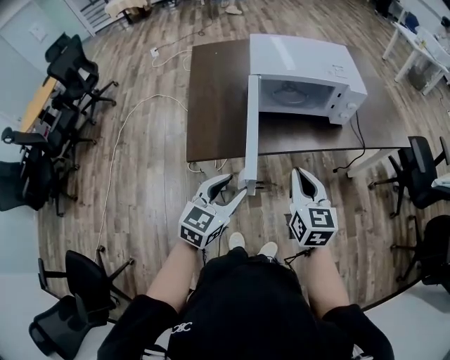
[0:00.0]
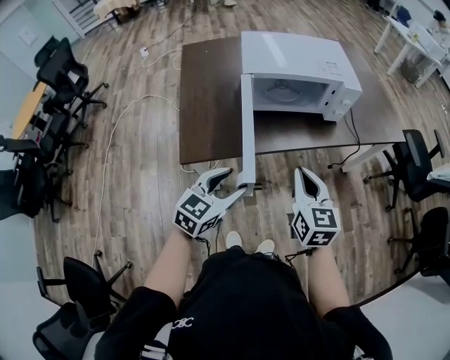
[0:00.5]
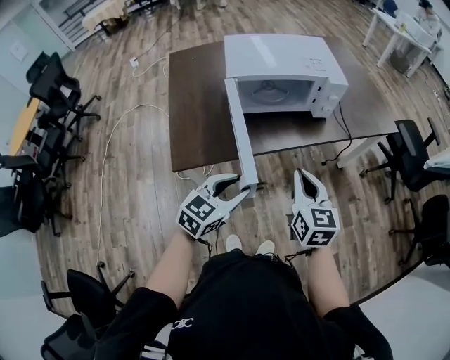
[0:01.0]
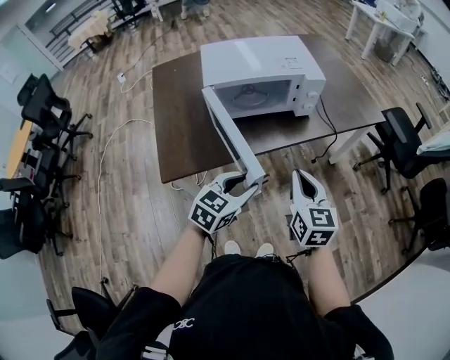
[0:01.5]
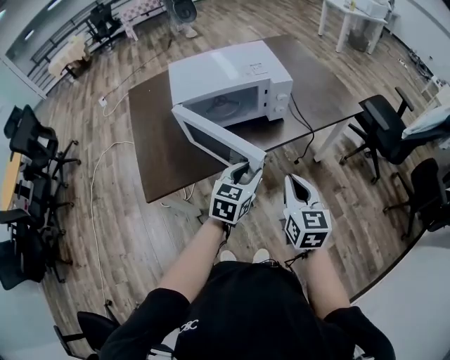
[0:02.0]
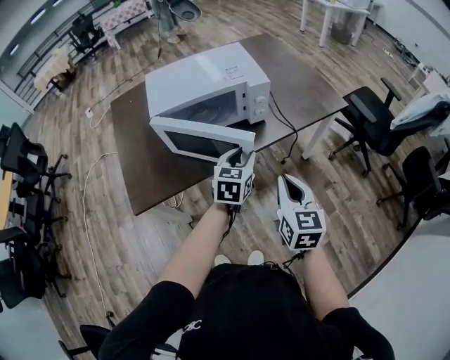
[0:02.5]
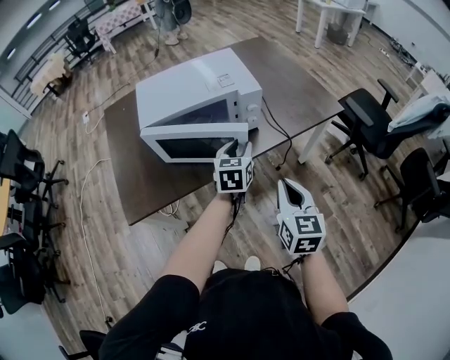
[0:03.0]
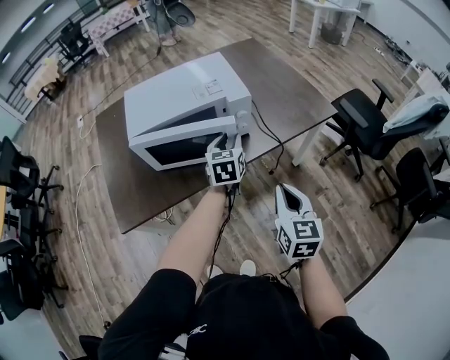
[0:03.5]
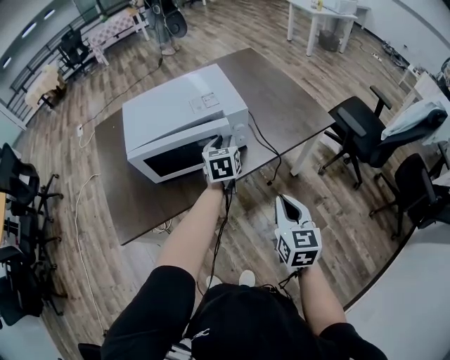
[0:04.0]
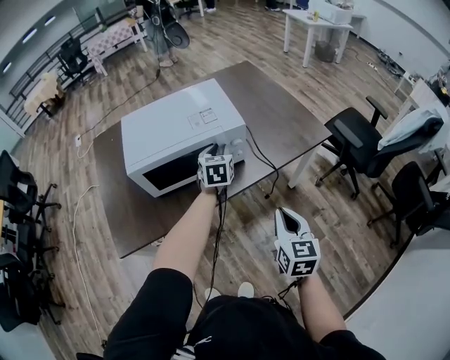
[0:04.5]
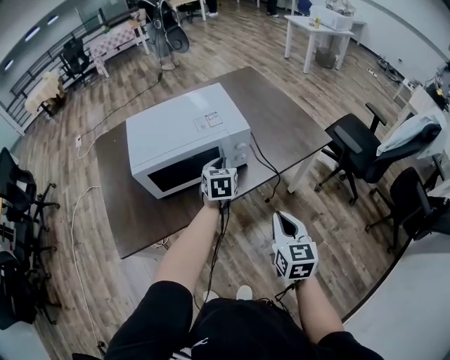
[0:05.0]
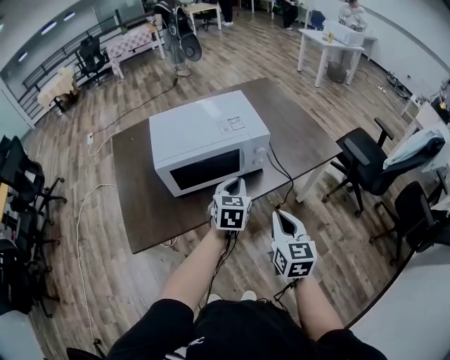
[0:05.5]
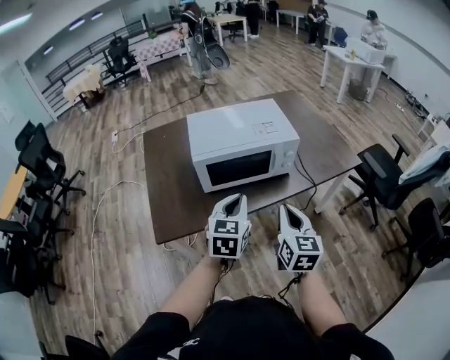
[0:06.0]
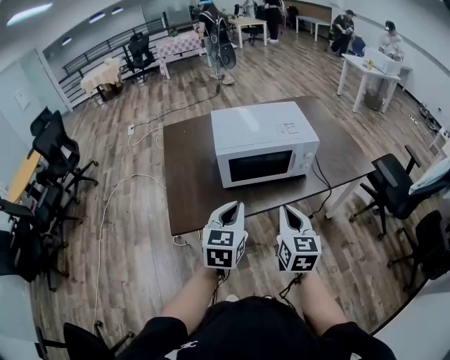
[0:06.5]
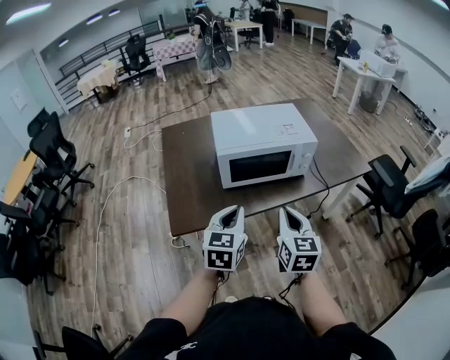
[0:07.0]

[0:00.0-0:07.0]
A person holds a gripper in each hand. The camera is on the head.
0:00.0 to 0:02.0: The left gripper travels to the right and forward by about 25 cm; the right gripper shifts some 15 cm to the right.
0:02.0 to 0:03.5: The left gripper is displaced forward by some 20 cm, while the right gripper is displaced to the right and forward by some 10 cm.
0:05.0 to 0:07.0: The right gripper shifts some 20 cm to the left. The left gripper heads backward and to the left, covering roughly 35 cm.

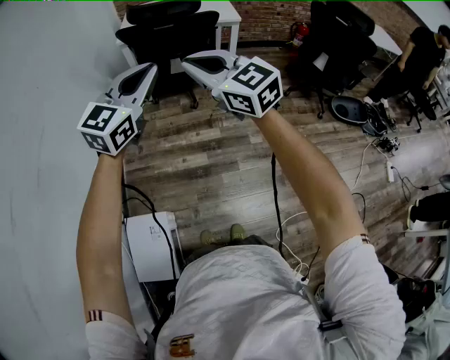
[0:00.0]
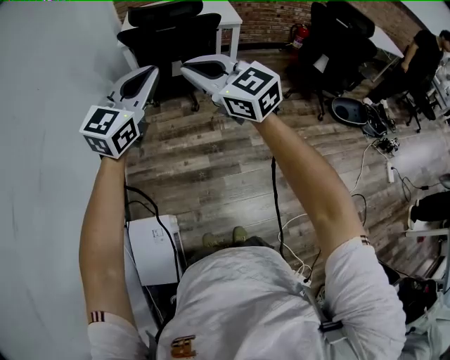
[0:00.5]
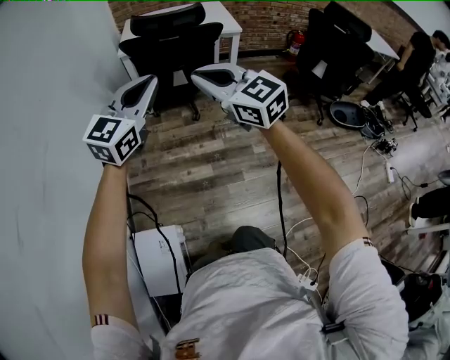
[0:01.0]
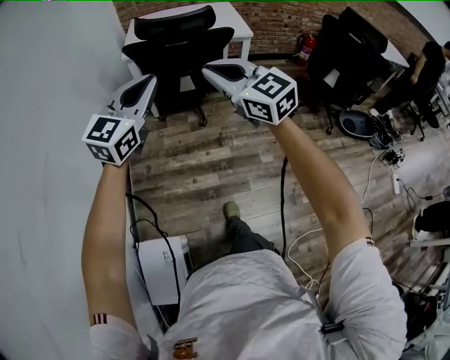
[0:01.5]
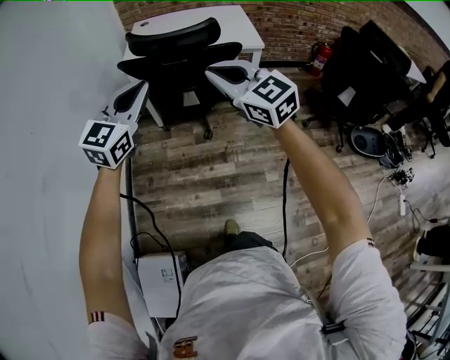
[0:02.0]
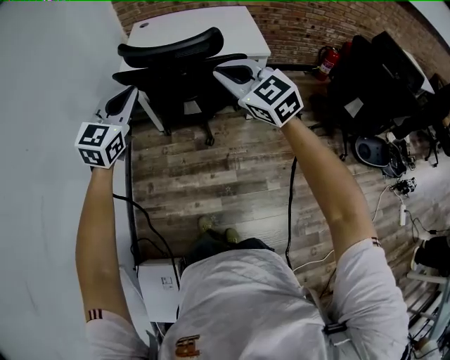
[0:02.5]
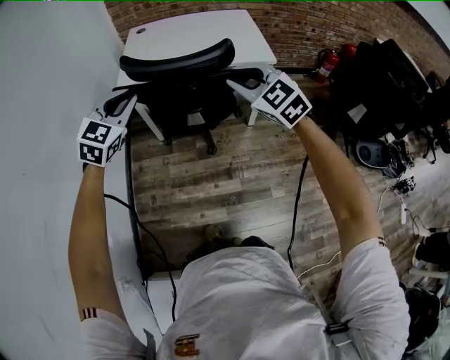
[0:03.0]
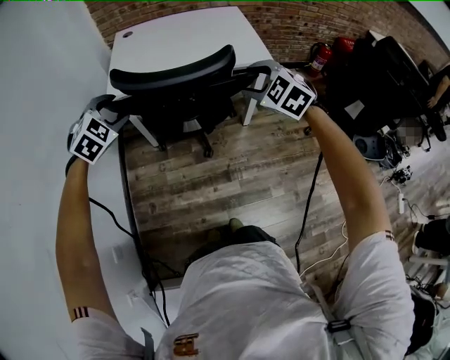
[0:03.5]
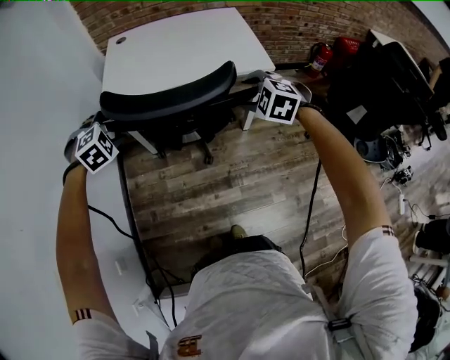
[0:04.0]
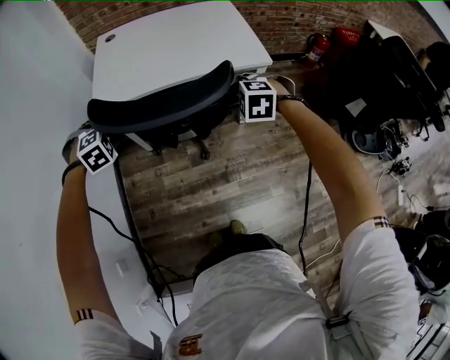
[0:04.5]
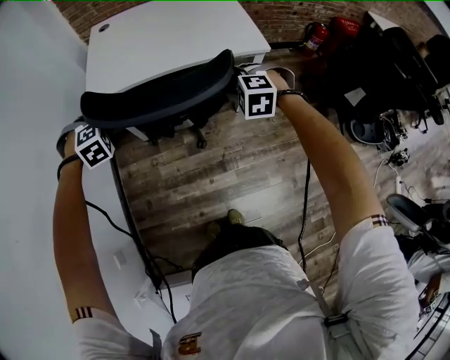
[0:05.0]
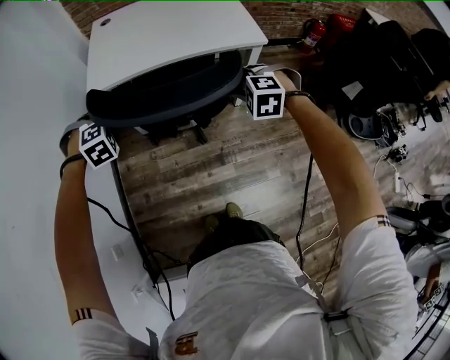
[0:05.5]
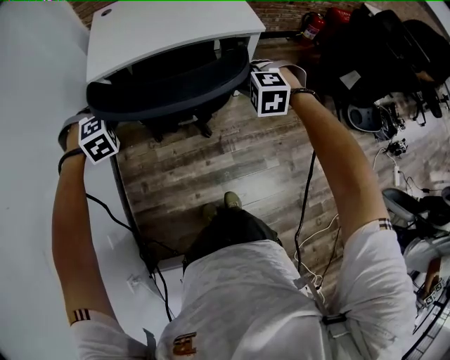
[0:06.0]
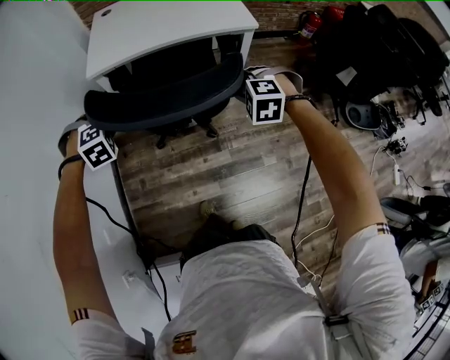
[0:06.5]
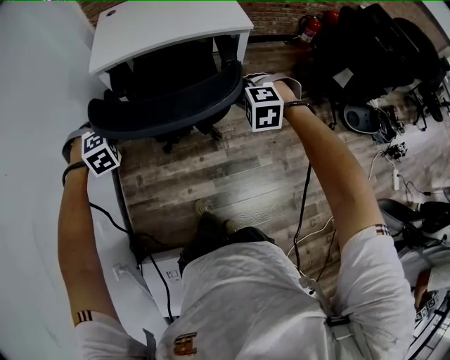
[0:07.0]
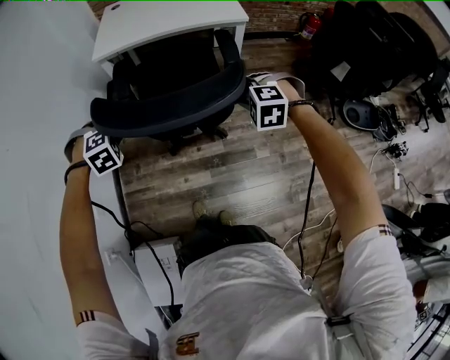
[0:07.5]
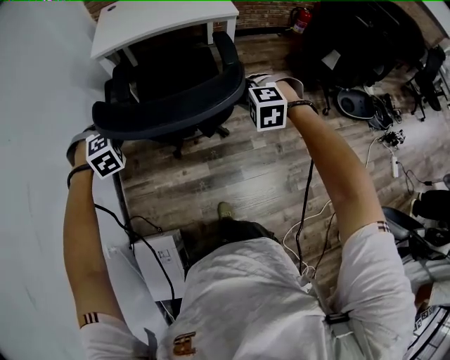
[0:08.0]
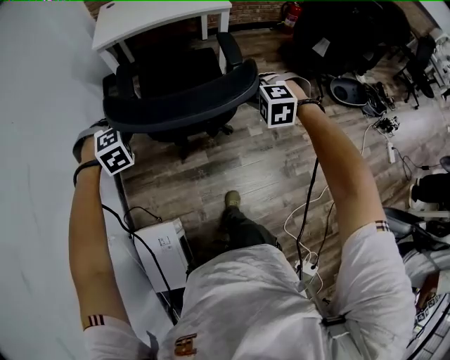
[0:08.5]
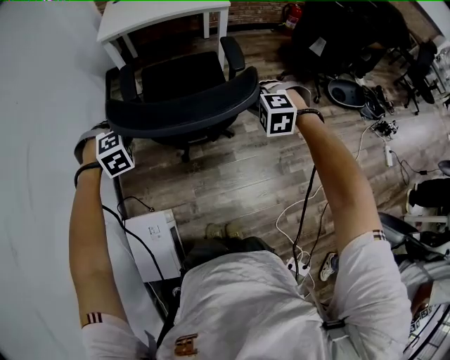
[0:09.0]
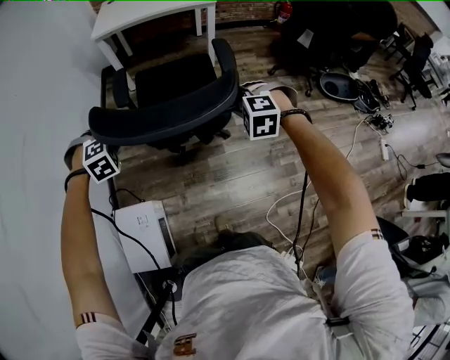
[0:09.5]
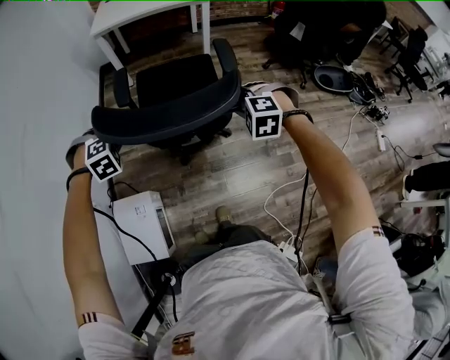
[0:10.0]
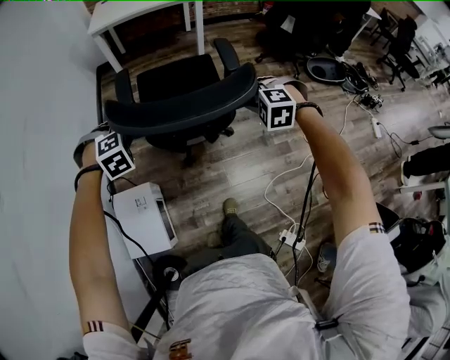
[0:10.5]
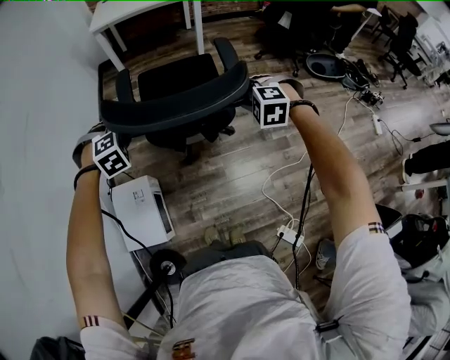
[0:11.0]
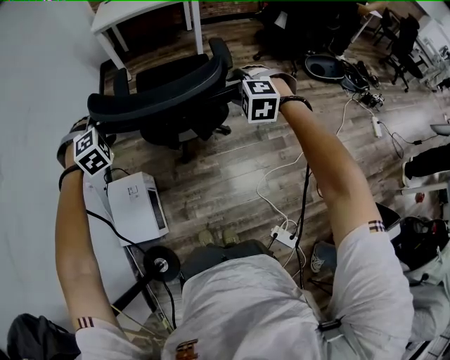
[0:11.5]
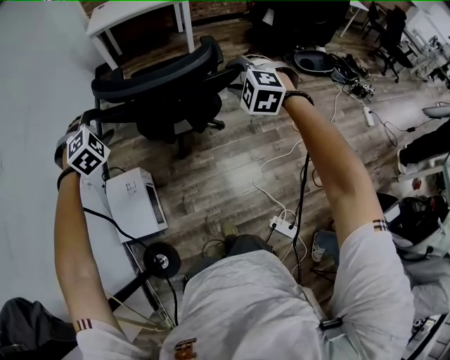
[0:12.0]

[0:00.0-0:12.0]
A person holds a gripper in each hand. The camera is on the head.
0:00.0 to 0:02.0: Both grippers move forward, some 30 cm.
0:02.0 to 0:04.0: The grippers both shift forward and downward by about 40 cm. The left gripper points its fingers about 50 degrees further downward, and opens up. The right gripper tilts its fingers approximately 50 degrees downward, and opens its fingers.
0:04.0 to 0:06.0: The right gripper travels backward and downward by some 10 cm, and closes its fingers; the left gripper is displaced backward by about 10 cm, and closes.
0:06.0 to 0:08.0: The two grippers go some 30 cm backward.
0:08.0 to 0:10.0: Both grippers move backward, about 35 cm.
0:10.0 to 0:12.0: The right gripper shifts approximately 20 cm backward and upward, and opens its fingers. The left gripper moves backward, roughly 20 cm, and opens.

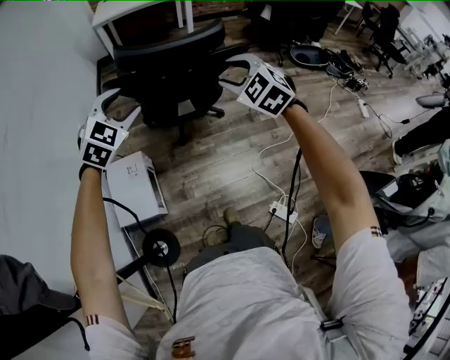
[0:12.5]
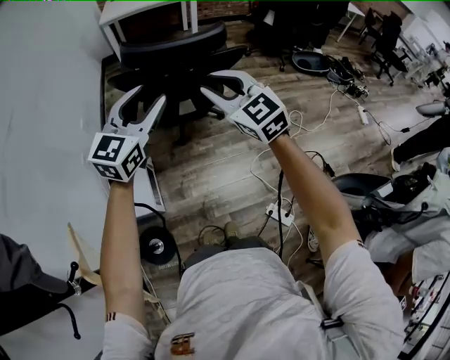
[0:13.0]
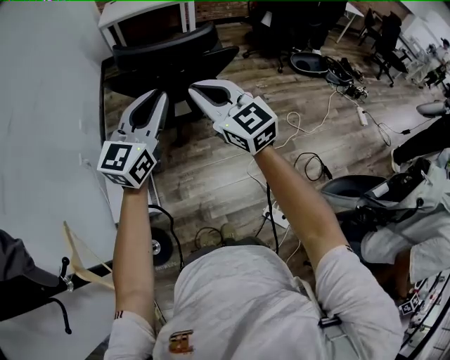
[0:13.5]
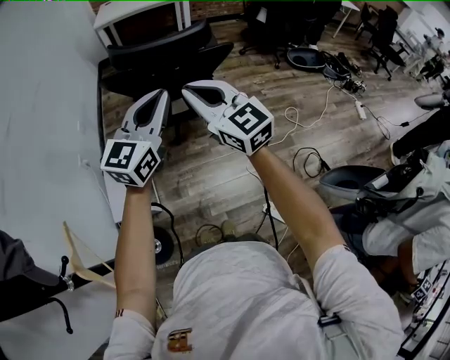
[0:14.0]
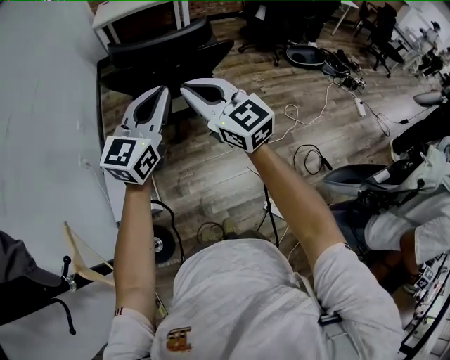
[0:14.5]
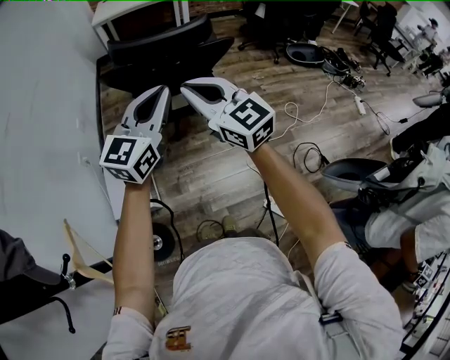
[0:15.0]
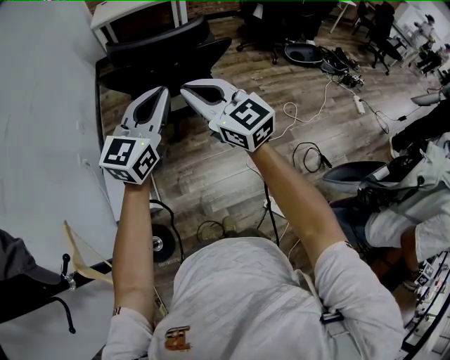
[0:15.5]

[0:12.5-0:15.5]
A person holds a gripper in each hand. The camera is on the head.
0:12.5 to 0:14.0: The left gripper heads to the right, backward and upward, covering about 20 cm, tips its fingers upward by roughly 40 degrees, and closes its fingers, while the right gripper goes about 15 cm backward, upward and to the left, tilts its fingers some 30 degrees upward, and closes its fingers.
0:14.0 to 0:15.5: The grippers make only small movements.

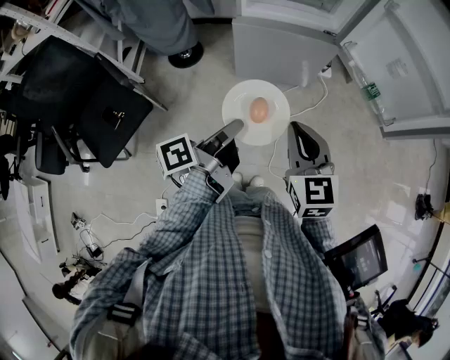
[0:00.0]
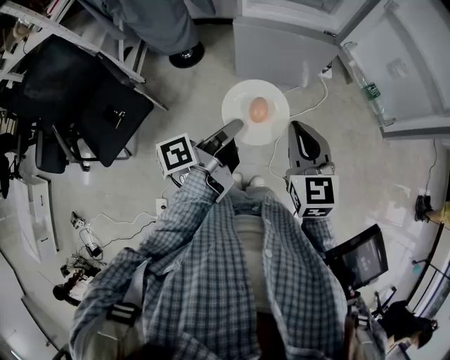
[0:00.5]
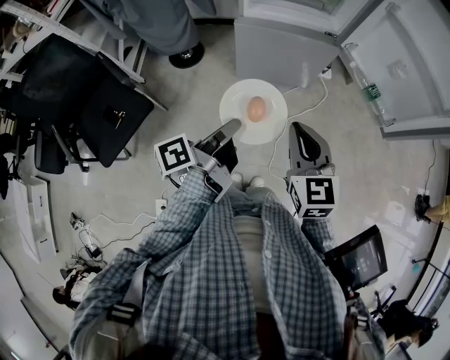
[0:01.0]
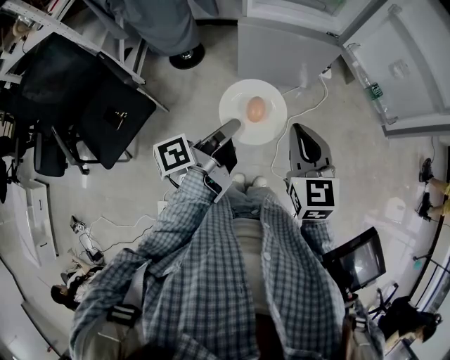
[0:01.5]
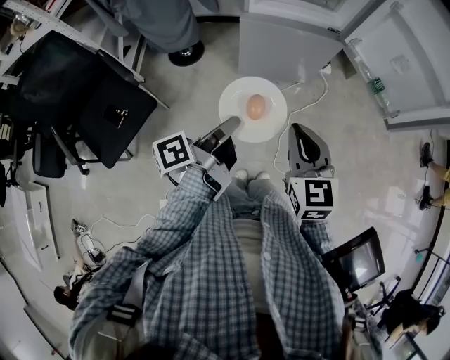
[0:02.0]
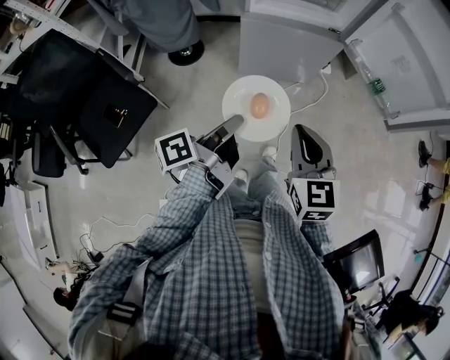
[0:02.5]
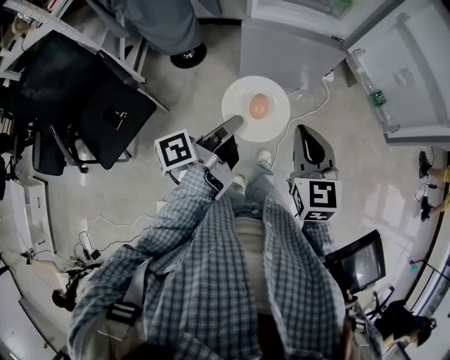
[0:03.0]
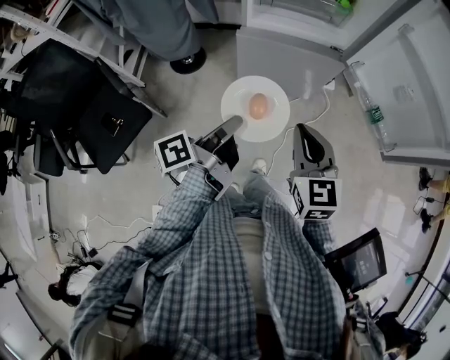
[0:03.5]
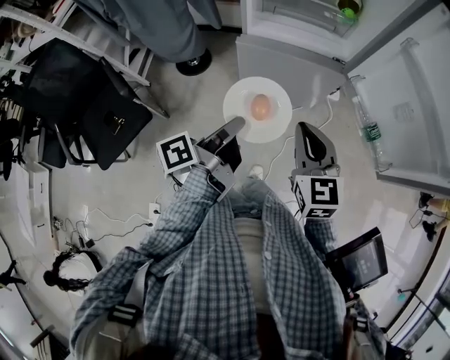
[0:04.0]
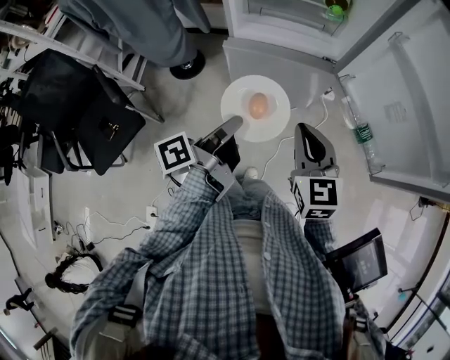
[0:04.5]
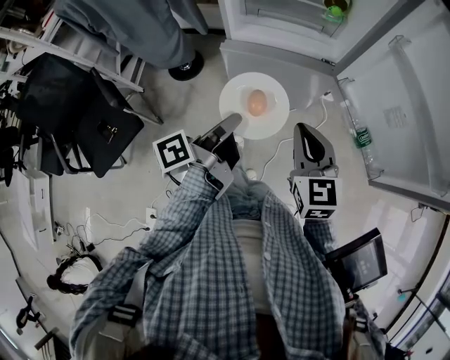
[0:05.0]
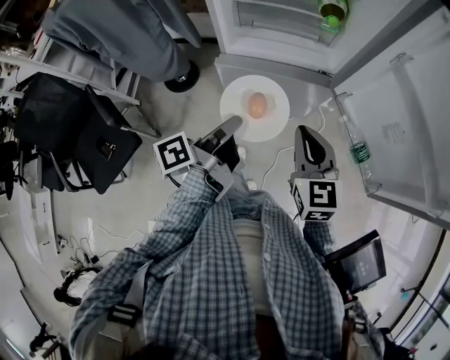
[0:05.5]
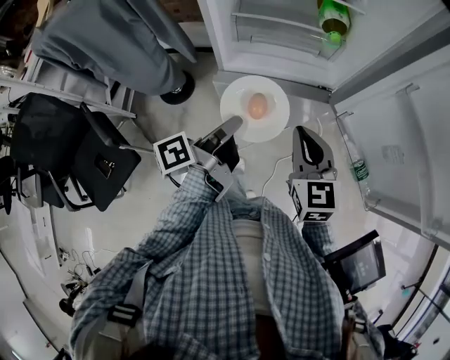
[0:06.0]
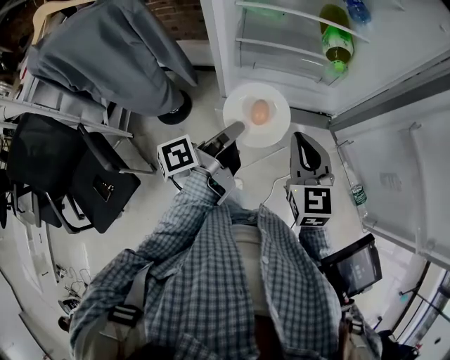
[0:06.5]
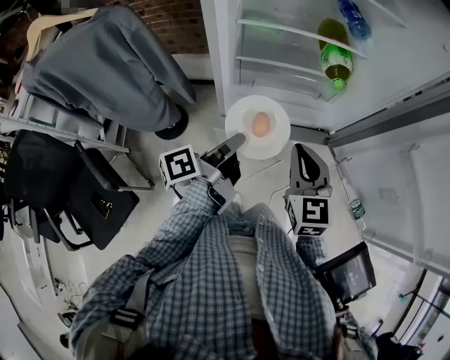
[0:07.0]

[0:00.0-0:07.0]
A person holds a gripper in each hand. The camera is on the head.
0:00.0 to 0:02.0: The right gripper changes place by roughly 5 cm.
0:02.0 to 0:03.5: The right gripper shifts by some 15 cm.
0:03.5 to 0:05.0: The right gripper shifts by approximately 15 cm.
0:05.0 to 0:07.0: The right gripper changes place by roughly 25 cm.
